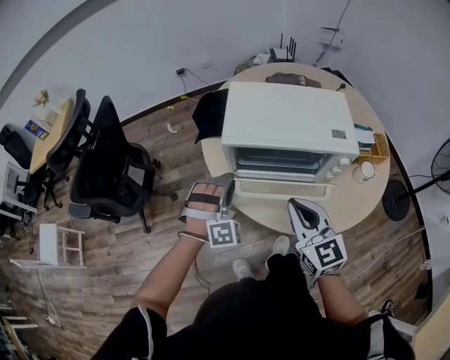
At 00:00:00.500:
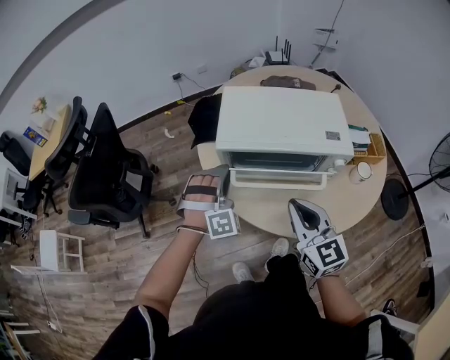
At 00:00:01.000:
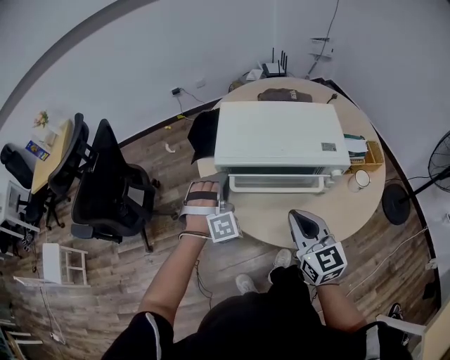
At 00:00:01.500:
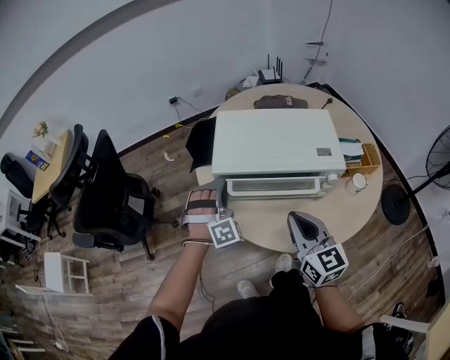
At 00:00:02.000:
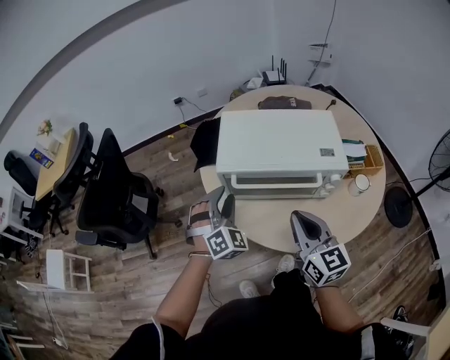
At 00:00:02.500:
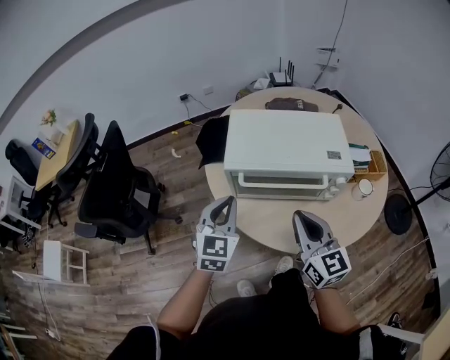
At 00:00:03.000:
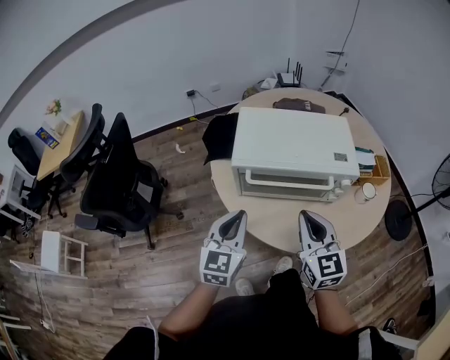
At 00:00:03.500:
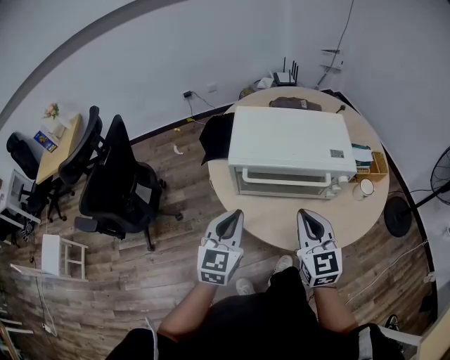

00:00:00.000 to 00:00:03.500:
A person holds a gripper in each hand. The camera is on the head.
00:00:00.000 to 00:00:02.000: The left gripper turns by roughly 30 degrees.
00:00:02.000 to 00:00:03.500: The left gripper travels backward by roughly 10 cm, rotates around the line of its fingers by roughly 50 degrees, counterclockwise from behind, and closes up.

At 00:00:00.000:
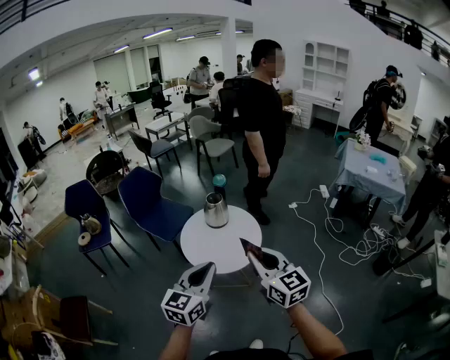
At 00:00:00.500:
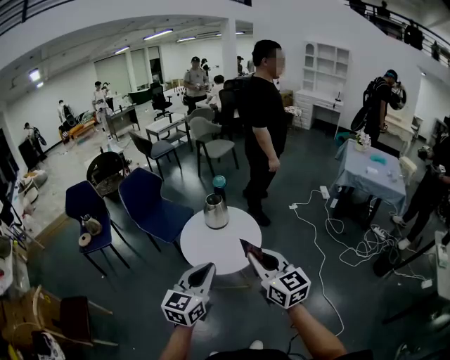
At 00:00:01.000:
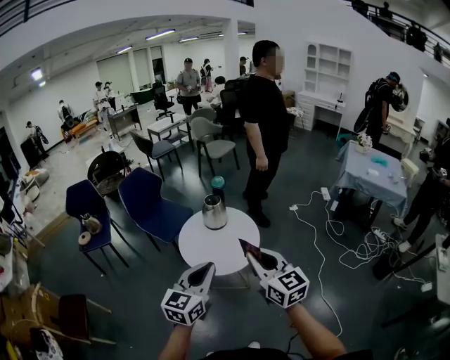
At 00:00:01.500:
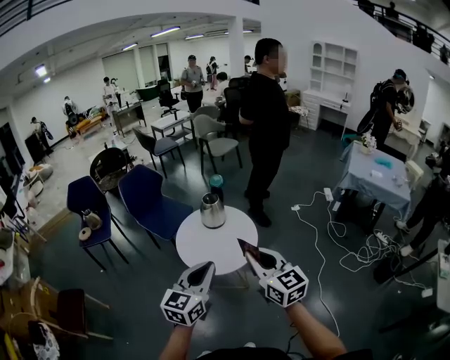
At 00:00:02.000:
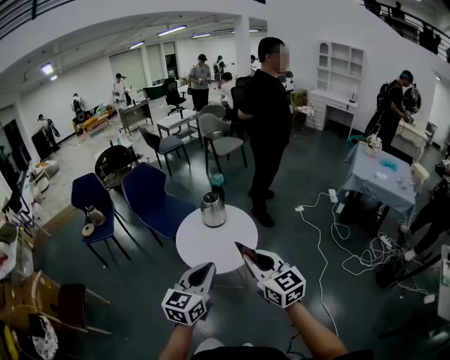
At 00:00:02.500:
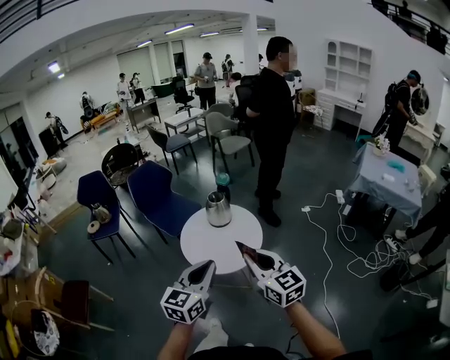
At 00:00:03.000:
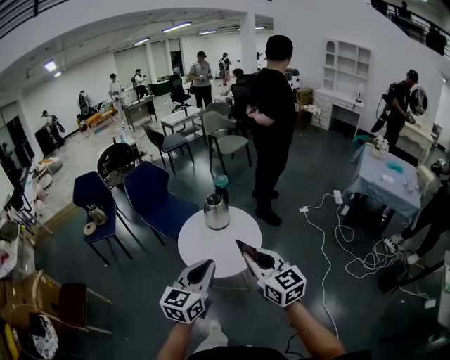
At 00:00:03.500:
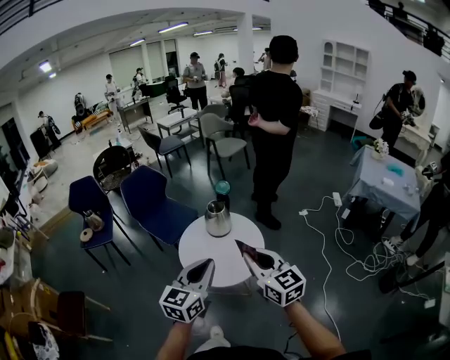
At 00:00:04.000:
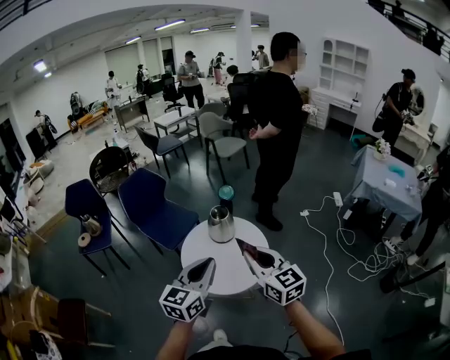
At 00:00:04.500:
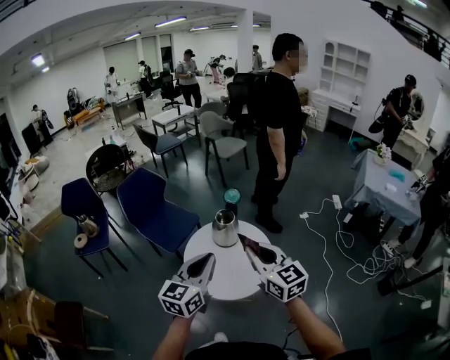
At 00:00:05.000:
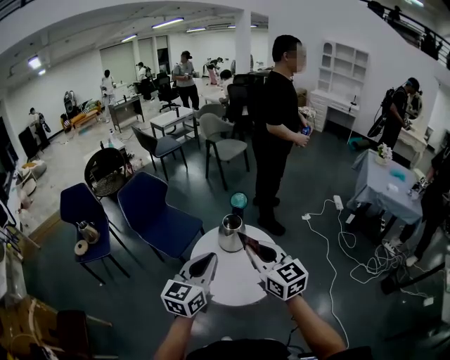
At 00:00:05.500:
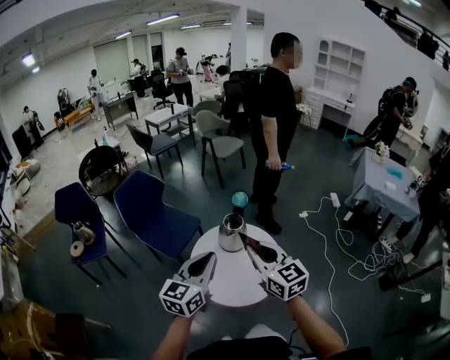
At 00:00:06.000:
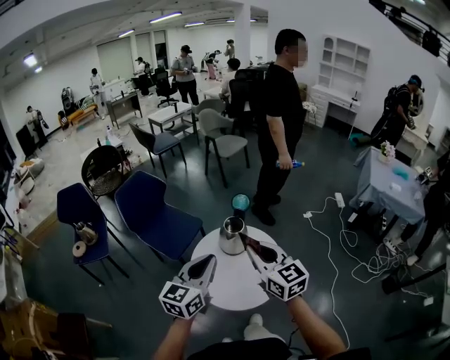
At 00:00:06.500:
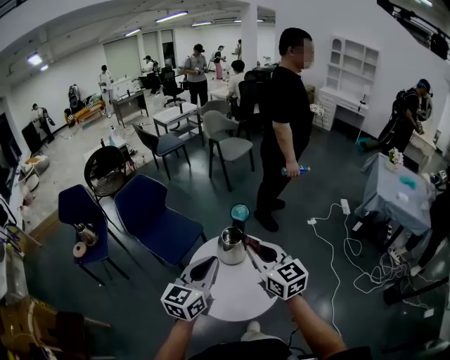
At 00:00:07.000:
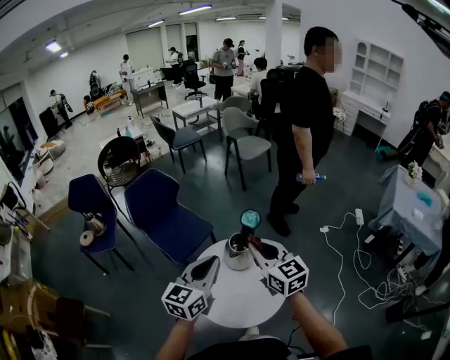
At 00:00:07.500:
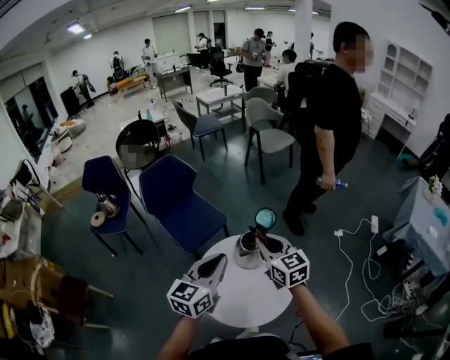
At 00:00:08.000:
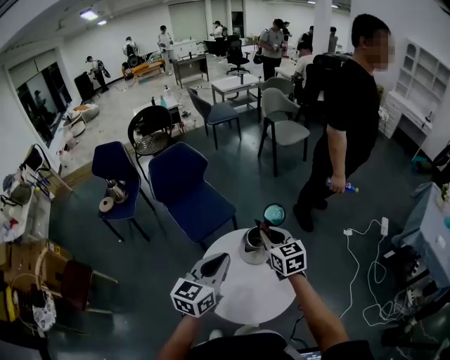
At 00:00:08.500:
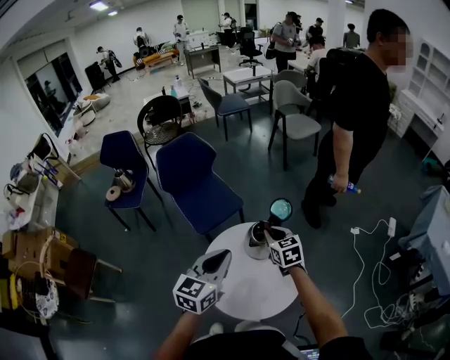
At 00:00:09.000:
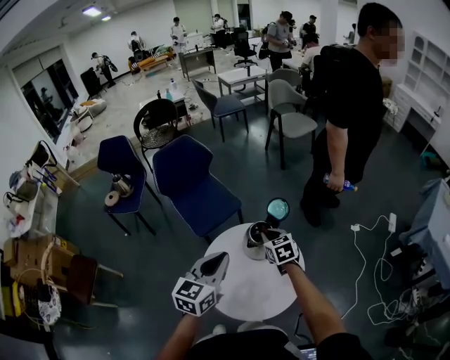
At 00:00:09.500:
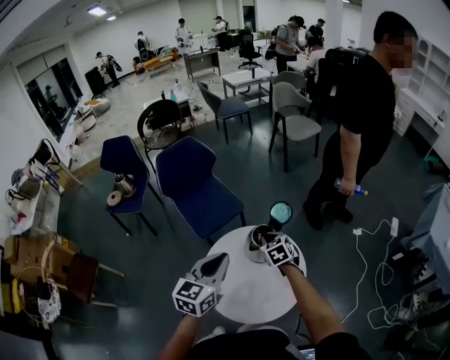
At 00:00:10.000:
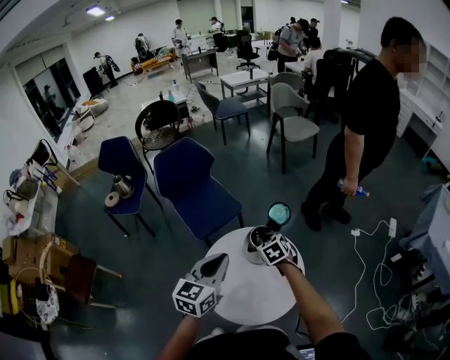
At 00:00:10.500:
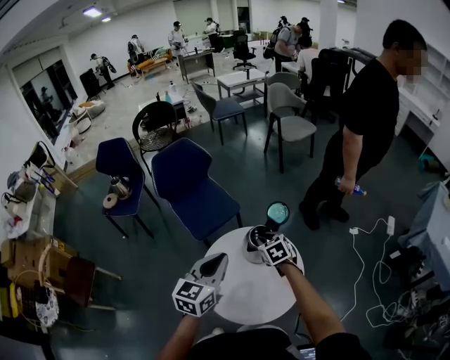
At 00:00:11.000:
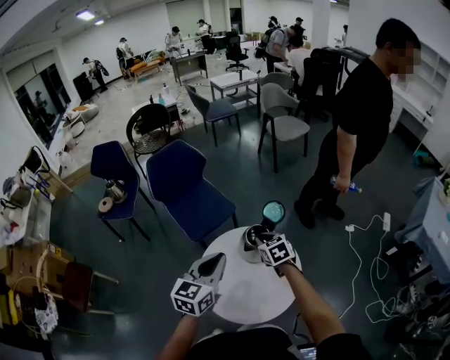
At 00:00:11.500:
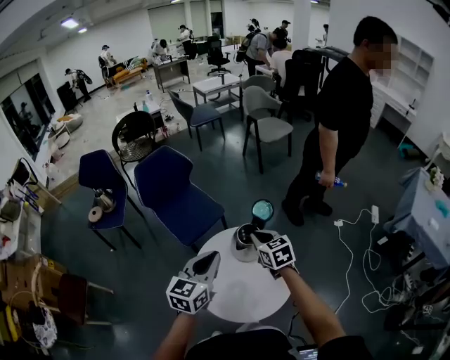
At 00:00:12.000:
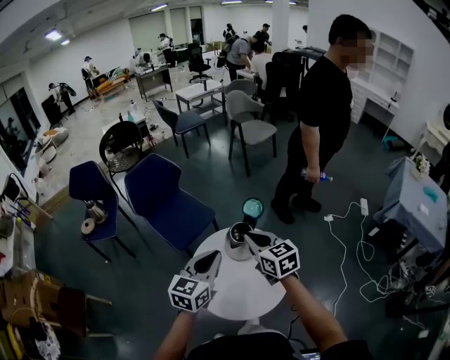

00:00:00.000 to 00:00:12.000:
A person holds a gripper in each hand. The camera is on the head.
00:00:00.000 to 00:00:02.000: The two grippers go some 10 cm to the right.
00:00:02.000 to 00:00:04.000: The grippers both shift forward by approximately 20 cm.
00:00:04.000 to 00:00:06.000: Both grippers move forward and to the left, approximately 20 cm.
00:00:06.000 to 00:00:08.000: The left gripper shifts roughly 15 cm forward, while the right gripper travels forward and downward by roughly 30 cm, and turns by some 20 degrees.
00:00:08.000 to 00:00:10.000: The right gripper travels downward by some 15 cm, and swivels approximately 30 degrees.
00:00:10.000 to 00:00:12.000: The right gripper heads upward and backward, covering roughly 20 cm, and changes its angle by about 30 degrees.

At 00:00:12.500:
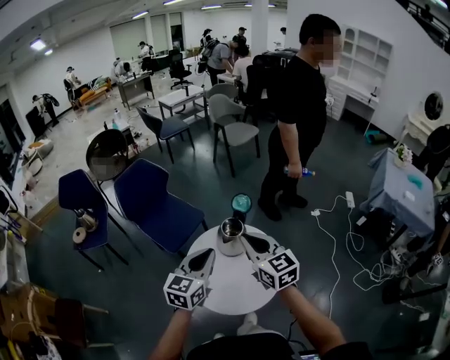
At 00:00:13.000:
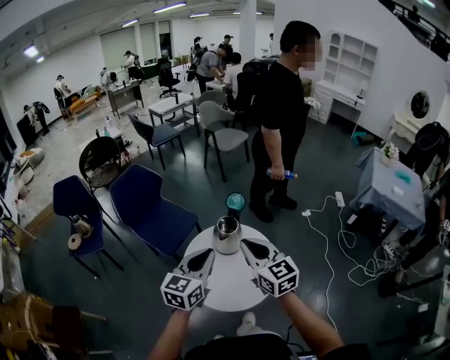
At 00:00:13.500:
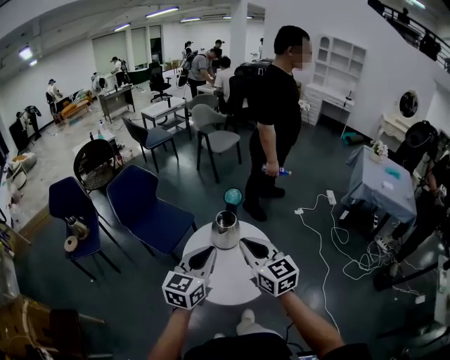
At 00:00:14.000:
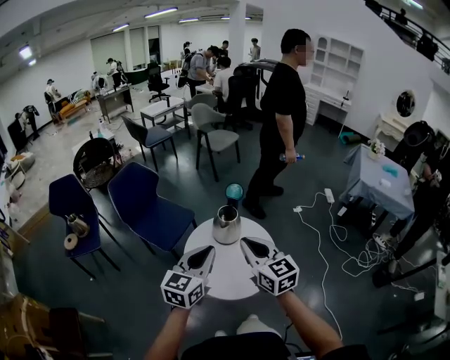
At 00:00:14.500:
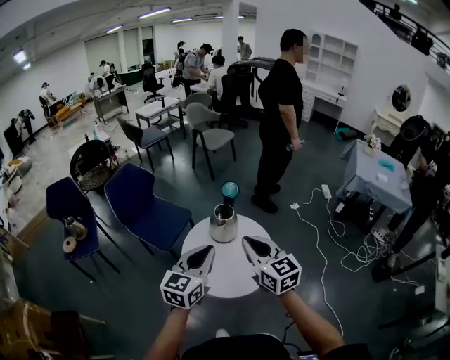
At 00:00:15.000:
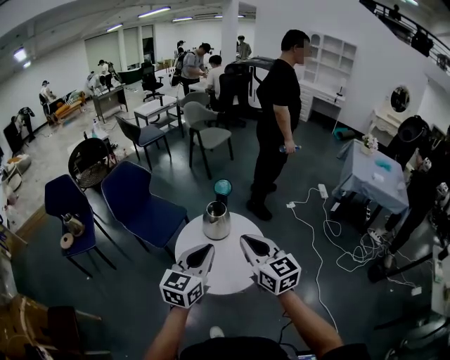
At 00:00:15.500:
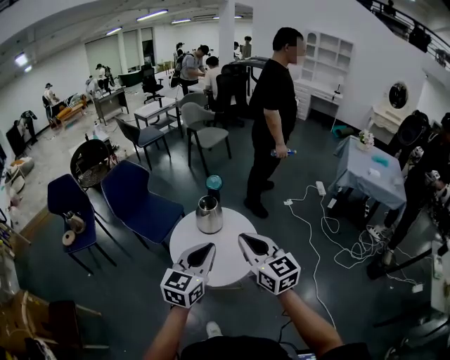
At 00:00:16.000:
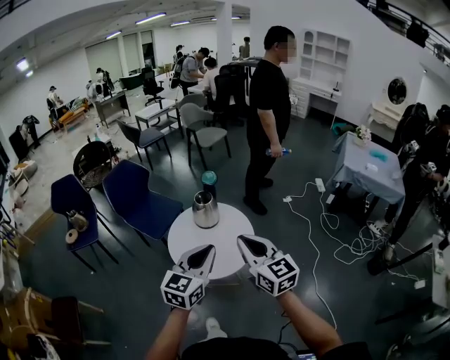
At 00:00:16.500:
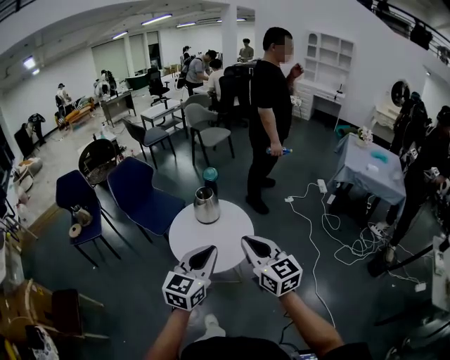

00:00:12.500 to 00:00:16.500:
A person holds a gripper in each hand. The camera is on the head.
00:00:12.500 to 00:00:14.500: The grippers both shift backward by about 15 cm.
00:00:14.500 to 00:00:16.500: The two grippers go some 25 cm backward and to the right.

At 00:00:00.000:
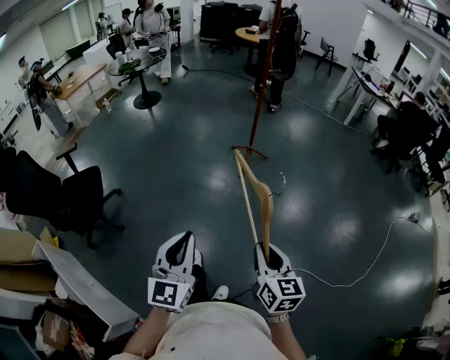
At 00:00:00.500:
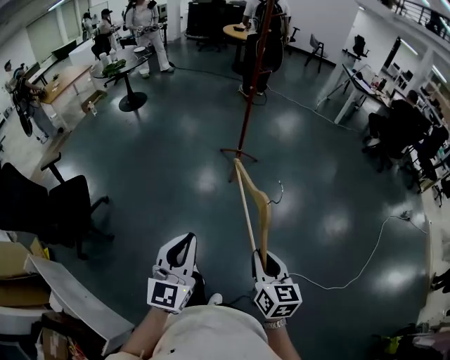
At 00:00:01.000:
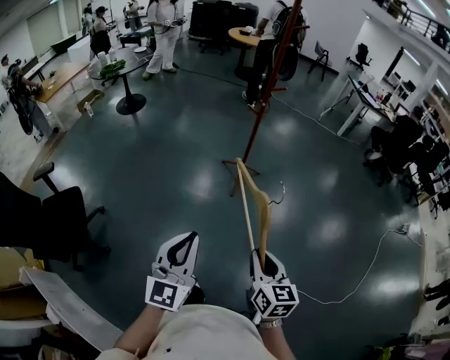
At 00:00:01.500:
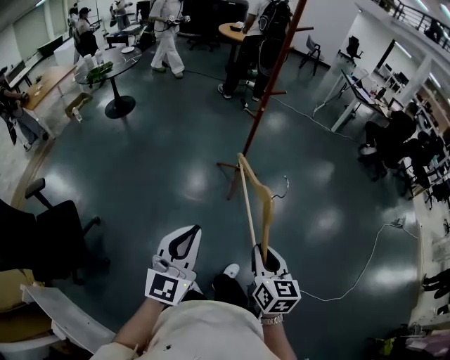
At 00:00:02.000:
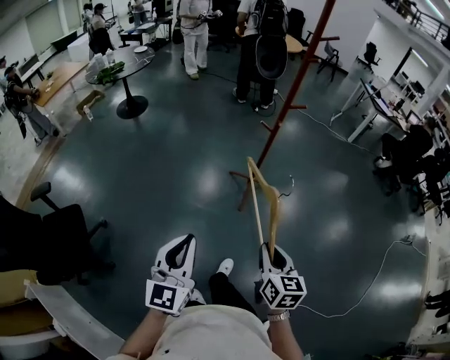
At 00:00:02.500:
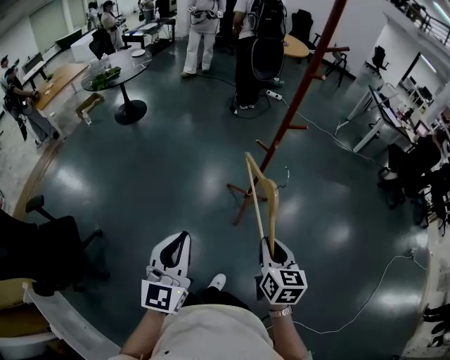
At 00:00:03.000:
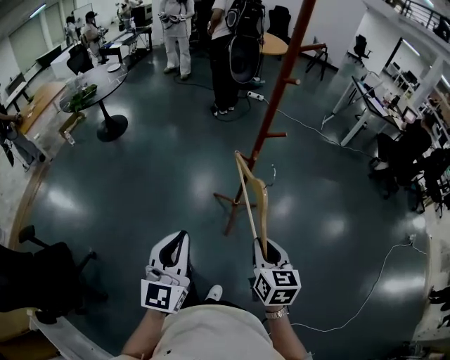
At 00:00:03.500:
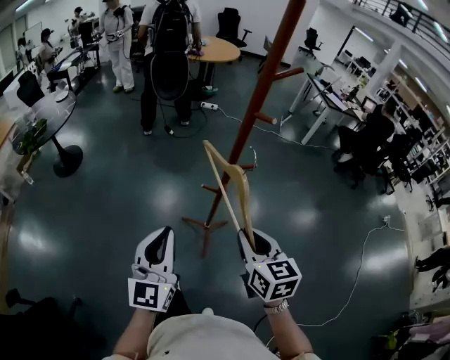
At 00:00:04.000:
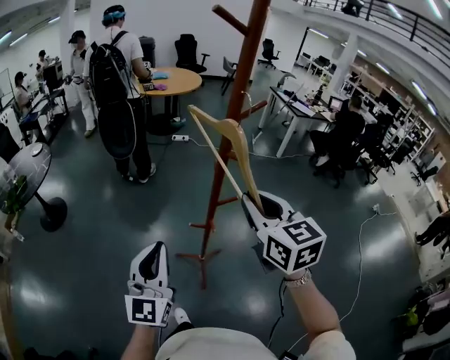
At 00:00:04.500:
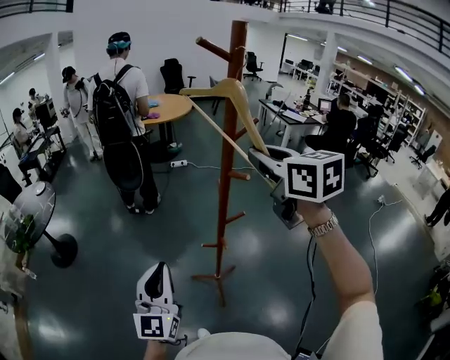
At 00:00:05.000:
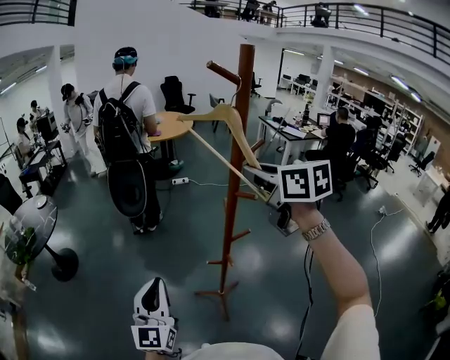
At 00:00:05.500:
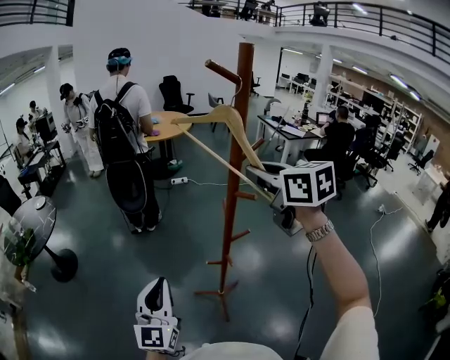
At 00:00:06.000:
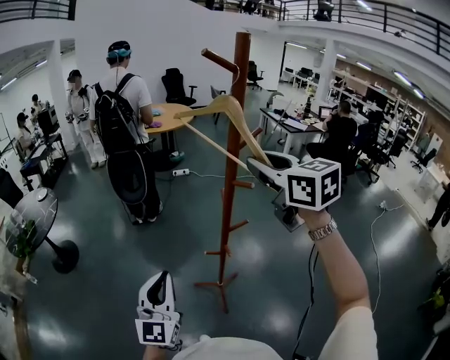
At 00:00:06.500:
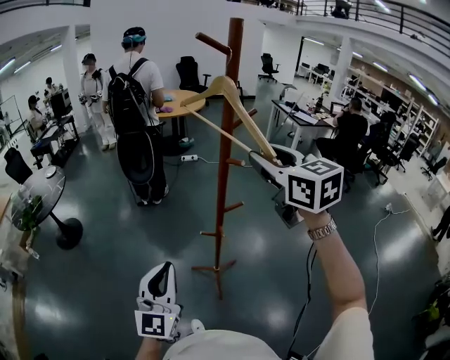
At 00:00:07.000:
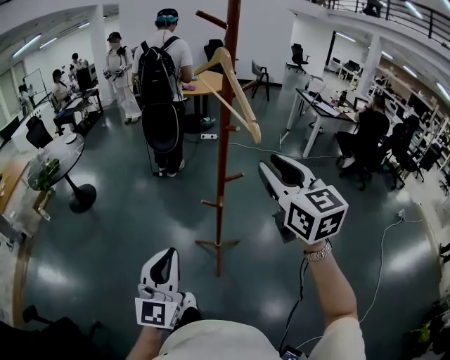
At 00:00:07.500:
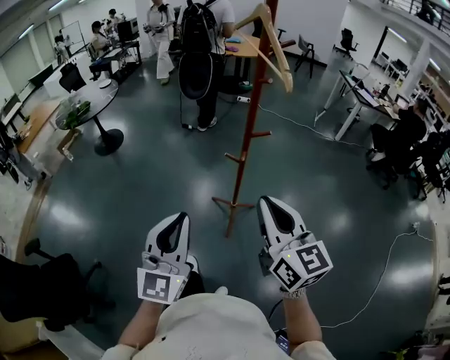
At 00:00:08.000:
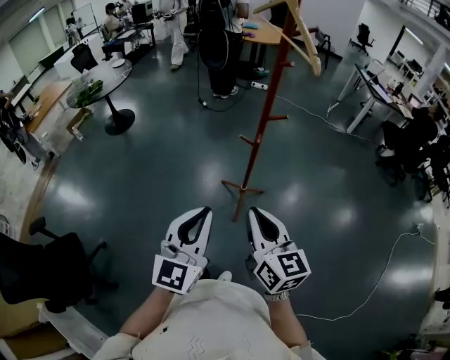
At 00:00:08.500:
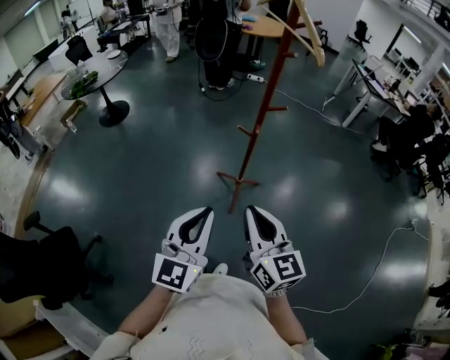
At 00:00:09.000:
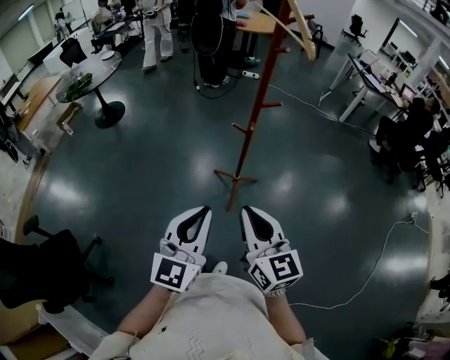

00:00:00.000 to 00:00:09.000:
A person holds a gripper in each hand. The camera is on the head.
00:00:00.000 to 00:00:02.000: The pair of grippers is taken forward, some 50 cm.
00:00:02.000 to 00:00:04.500: The pair of grippers is taken forward, approximately 60 cm. The right gripper goes some 40 cm upward, while the left gripper rotates approximately 20 degrees.
00:00:04.500 to 00:00:07.000: The right gripper goes about 20 cm backward and downward; the left gripper is displaced backward and to the right by roughly 20 cm.
00:00:07.000 to 00:00:09.000: The left gripper goes approximately 15 cm backward and downward. The right gripper travels backward, downward and to the left by approximately 35 cm, and closes its fingers.
